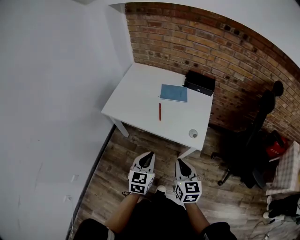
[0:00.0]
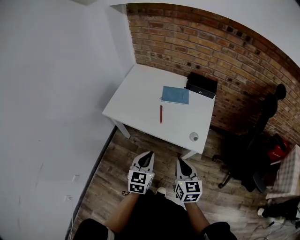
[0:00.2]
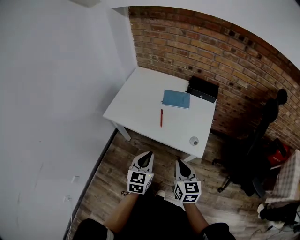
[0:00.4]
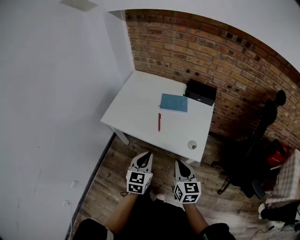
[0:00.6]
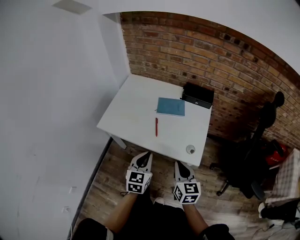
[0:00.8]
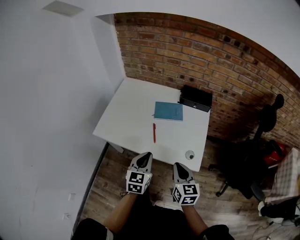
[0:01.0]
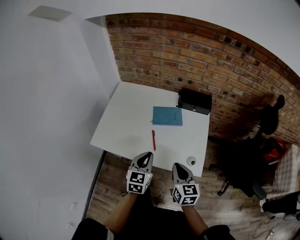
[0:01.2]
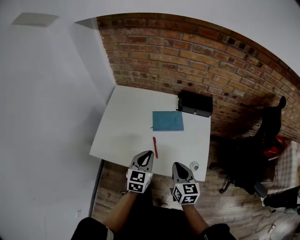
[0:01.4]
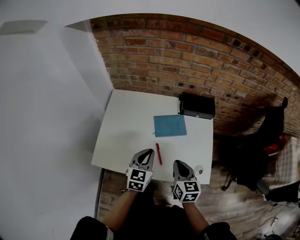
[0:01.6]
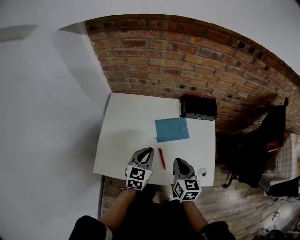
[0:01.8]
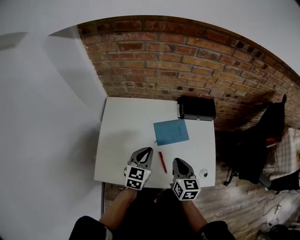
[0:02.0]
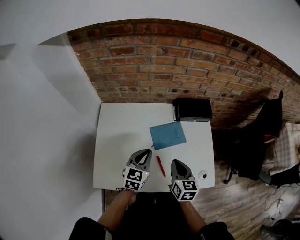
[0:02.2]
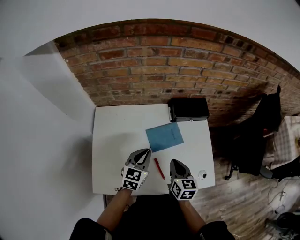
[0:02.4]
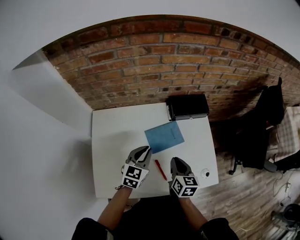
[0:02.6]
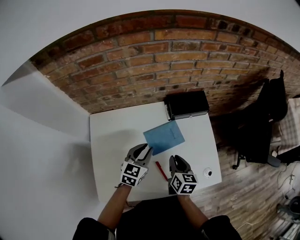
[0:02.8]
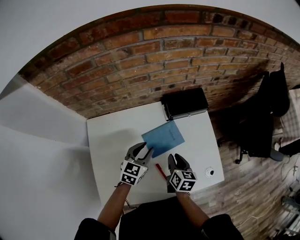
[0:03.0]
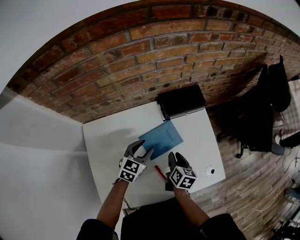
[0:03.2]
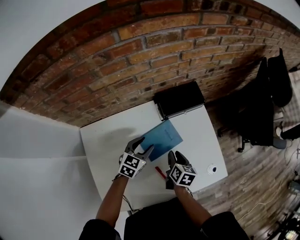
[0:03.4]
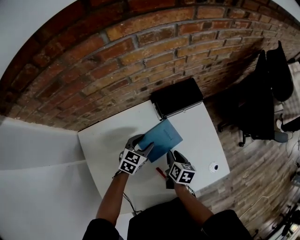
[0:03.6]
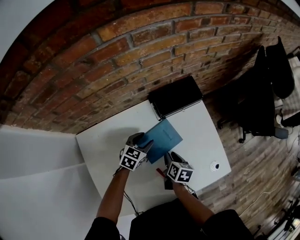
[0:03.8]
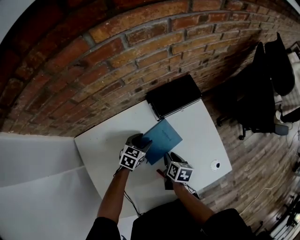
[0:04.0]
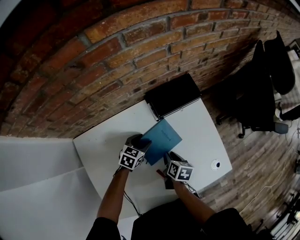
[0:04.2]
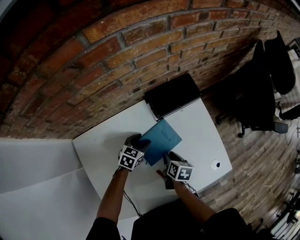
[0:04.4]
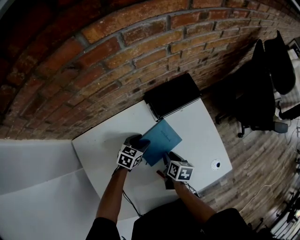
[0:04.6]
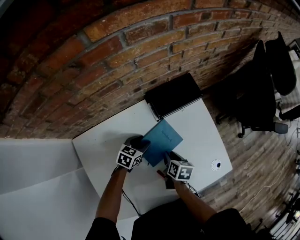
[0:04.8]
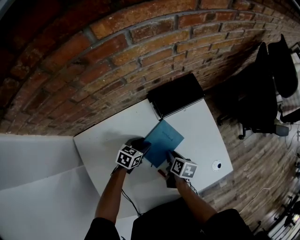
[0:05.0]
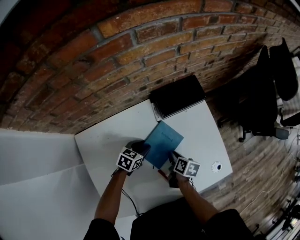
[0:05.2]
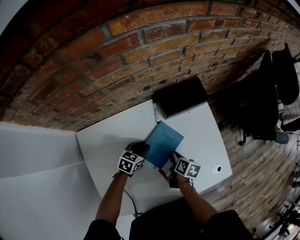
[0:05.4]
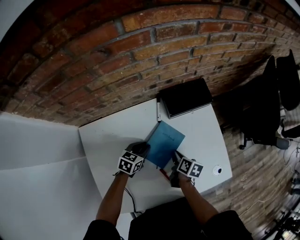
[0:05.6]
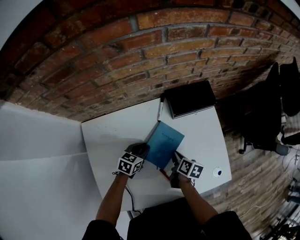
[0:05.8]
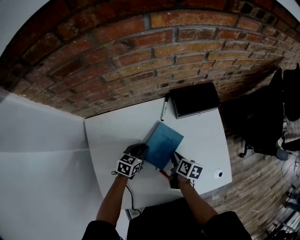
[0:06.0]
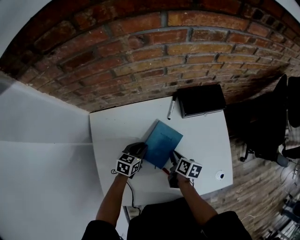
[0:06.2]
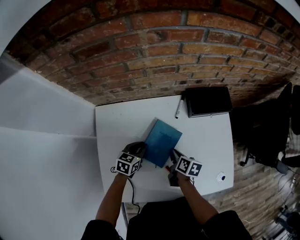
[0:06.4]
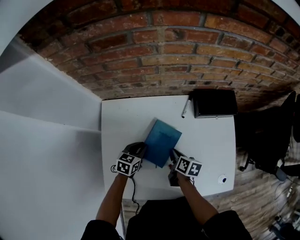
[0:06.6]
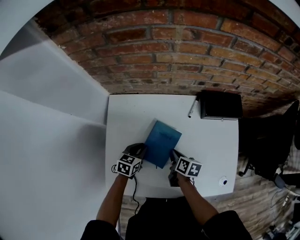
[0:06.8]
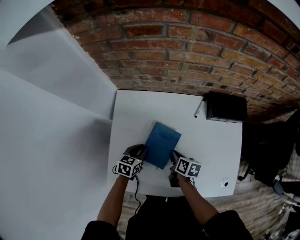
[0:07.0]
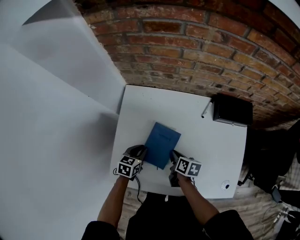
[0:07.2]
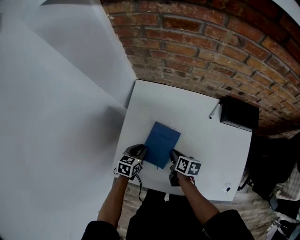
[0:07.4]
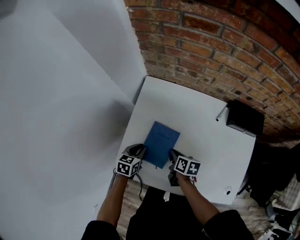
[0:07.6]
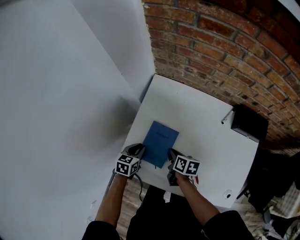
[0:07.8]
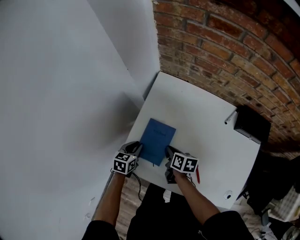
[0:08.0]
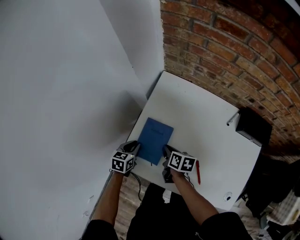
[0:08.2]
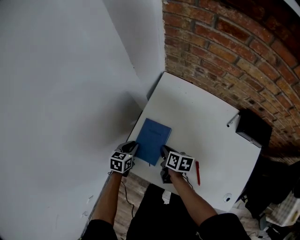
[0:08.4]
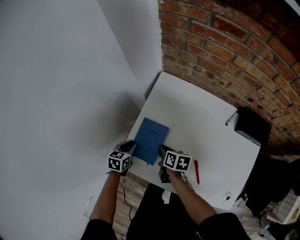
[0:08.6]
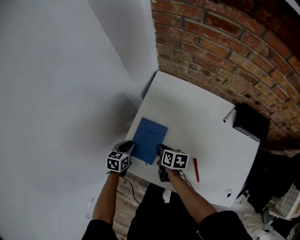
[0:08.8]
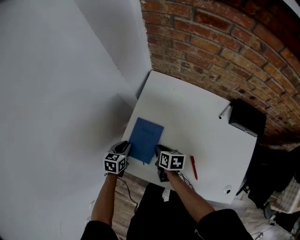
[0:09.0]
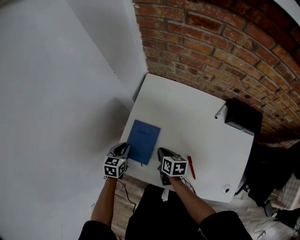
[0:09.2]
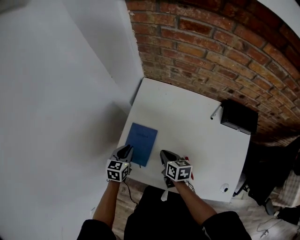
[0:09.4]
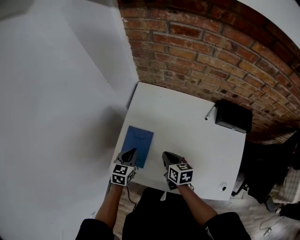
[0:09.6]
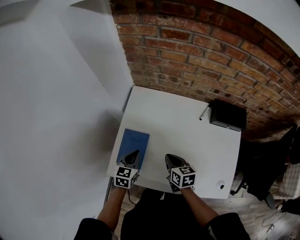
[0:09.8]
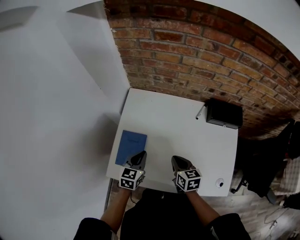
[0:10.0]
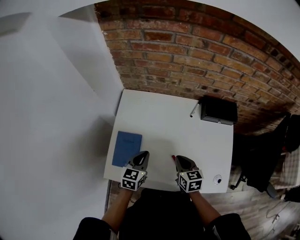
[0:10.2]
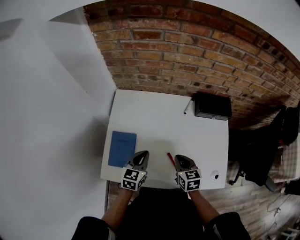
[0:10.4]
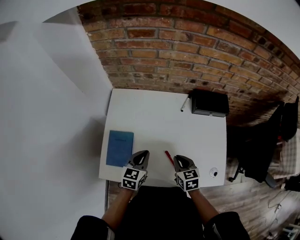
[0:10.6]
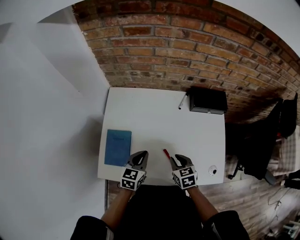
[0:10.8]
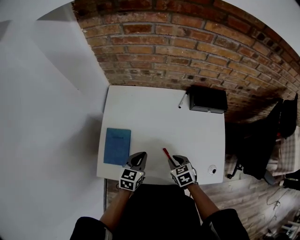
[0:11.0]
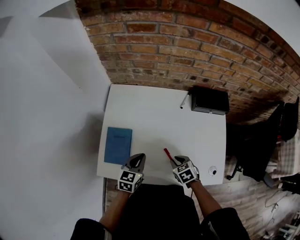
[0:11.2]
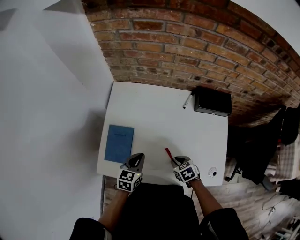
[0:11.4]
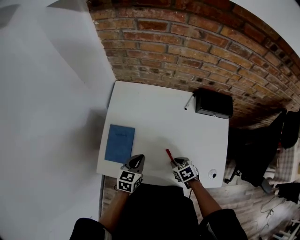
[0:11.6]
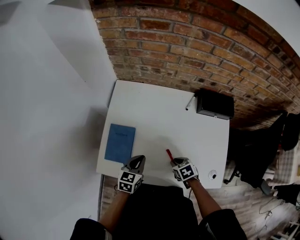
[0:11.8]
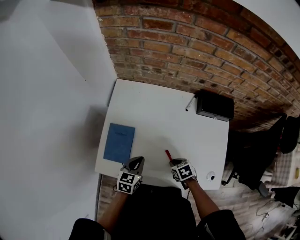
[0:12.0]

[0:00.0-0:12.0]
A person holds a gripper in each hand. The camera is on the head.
0:00.0 to 0:01.6: The grippers both shift forward by approximately 30 cm.
0:01.6 to 0:03.0: The left gripper shifts about 20 cm forward, turns by some 30 degrees, and opens up. The right gripper shifts approximately 20 cm forward and downward, and turns by roughly 30 degrees.
0:03.0 to 0:04.4: The left gripper heads downward and forward, covering about 20 cm, rotates about 20 degrees, and opens its fingers, while the right gripper heads downward, covering about 10 cm, and changes its angle by some 20 degrees.
0:04.4 to 0:06.0: The left gripper is displaced backward and to the left by some 10 cm, and closes its fingers.
0:06.0 to 0:07.6: The right gripper ends up approximately 20 cm from where it was, and changes its angle by some 40 degrees. Meanwhile the left gripper shifts by about 25 cm, and changes its angle by roughly 40 degrees.
0:07.6 to 0:09.0: Both grippers move to the left, about 10 cm.
0:09.0 to 0:10.4: The right gripper moves about 25 cm, and rotates approximately 30 degrees. The left gripper changes place by about 25 cm, and rotates about 30 degrees.
0:10.4 to 0:12.0: The right gripper shifts roughly 15 cm downward, and changes its angle by approximately 40 degrees. Meanwhile the left gripper shifts roughly 5 cm downward.

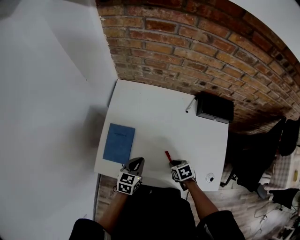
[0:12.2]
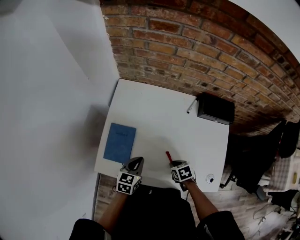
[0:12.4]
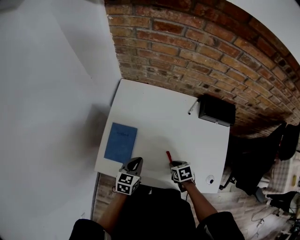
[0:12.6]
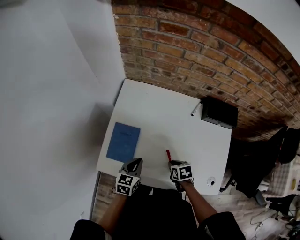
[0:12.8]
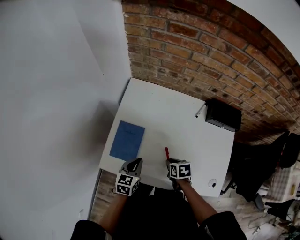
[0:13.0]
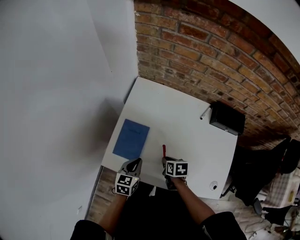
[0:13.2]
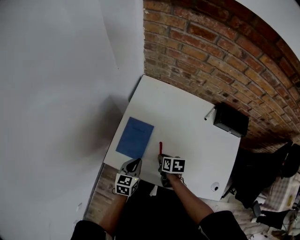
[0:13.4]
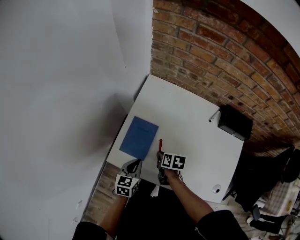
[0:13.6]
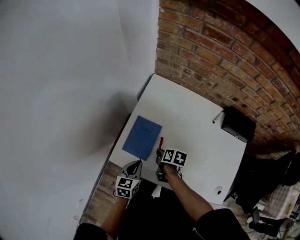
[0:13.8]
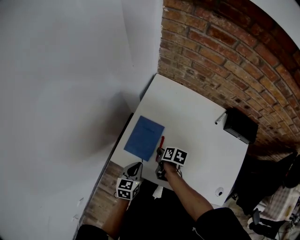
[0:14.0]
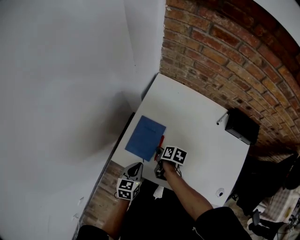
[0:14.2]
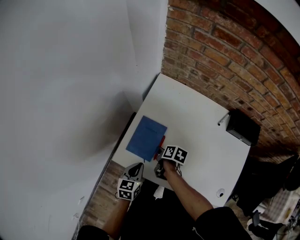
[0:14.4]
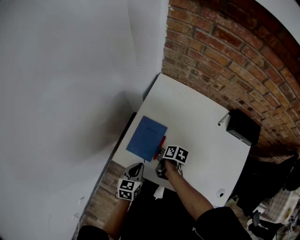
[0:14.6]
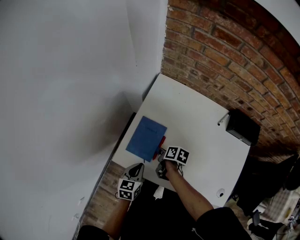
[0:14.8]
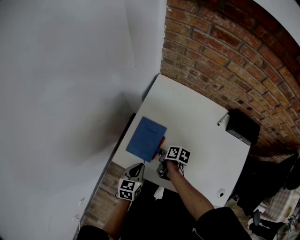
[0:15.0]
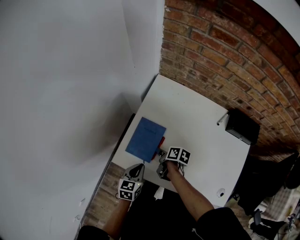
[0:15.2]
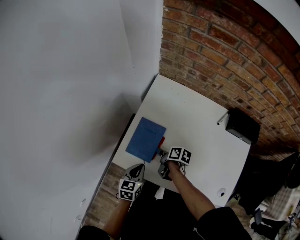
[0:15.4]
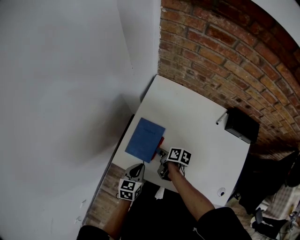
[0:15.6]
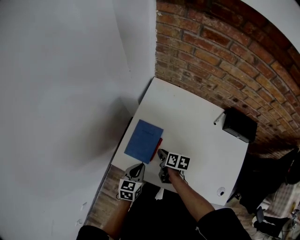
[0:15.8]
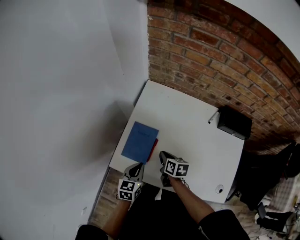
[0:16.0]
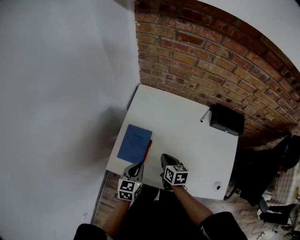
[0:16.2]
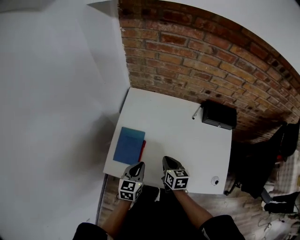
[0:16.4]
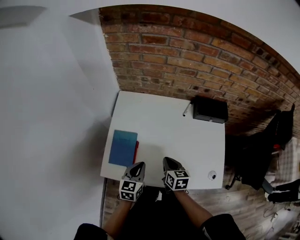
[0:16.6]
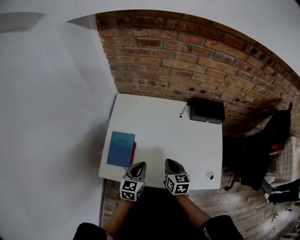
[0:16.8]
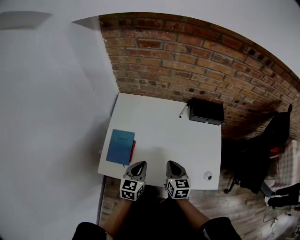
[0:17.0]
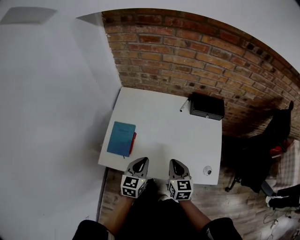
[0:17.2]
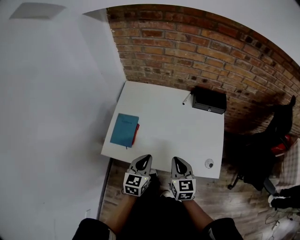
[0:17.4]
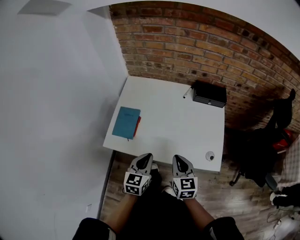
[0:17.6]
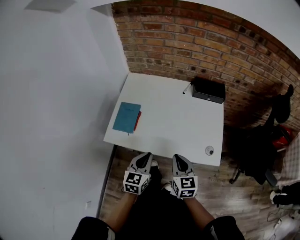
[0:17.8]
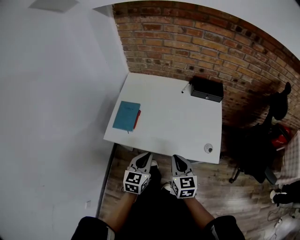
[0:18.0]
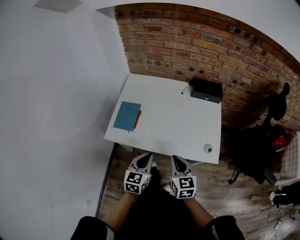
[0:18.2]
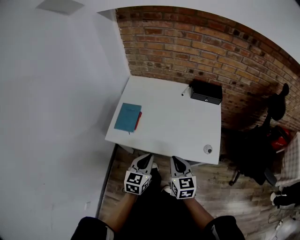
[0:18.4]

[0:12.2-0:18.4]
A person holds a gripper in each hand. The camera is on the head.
0:12.2 to 0:13.8: The right gripper heads to the left and forward, covering about 20 cm, and turns by approximately 30 degrees, while the left gripper goes some 10 cm to the left.
0:13.8 to 0:15.4: The grippers stay close to where they were, moving slightly.
0:15.4 to 0:16.8: The left gripper shifts by about 15 cm, and rotates some 20 degrees; the right gripper moves roughly 25 cm, and rotates approximately 50 degrees.
0:16.8 to 0:18.4: The left gripper moves backward, about 20 cm; the right gripper is displaced backward and upward by some 25 cm.

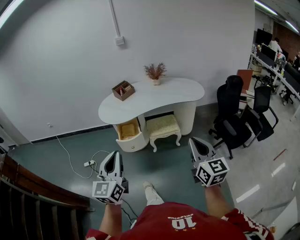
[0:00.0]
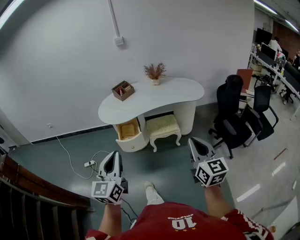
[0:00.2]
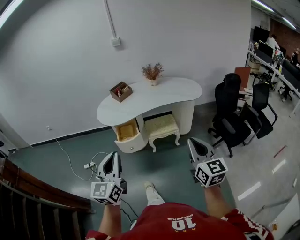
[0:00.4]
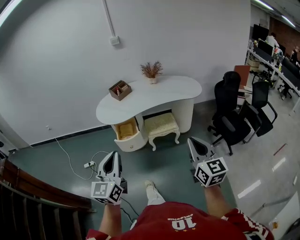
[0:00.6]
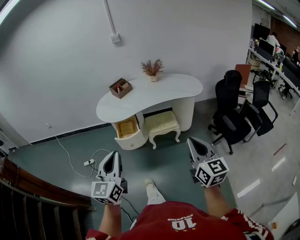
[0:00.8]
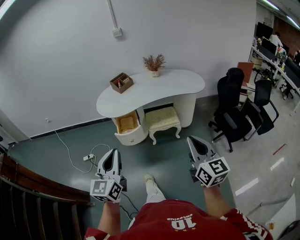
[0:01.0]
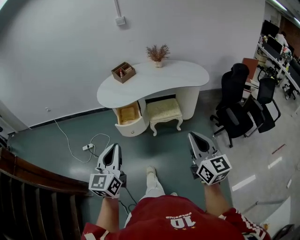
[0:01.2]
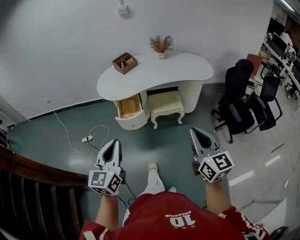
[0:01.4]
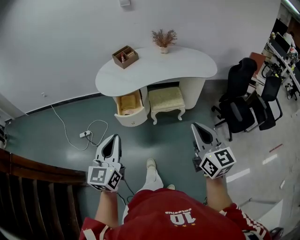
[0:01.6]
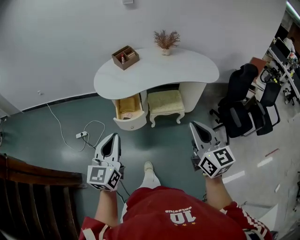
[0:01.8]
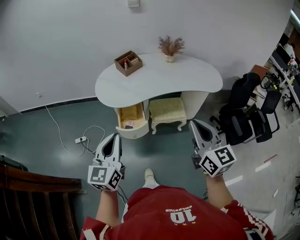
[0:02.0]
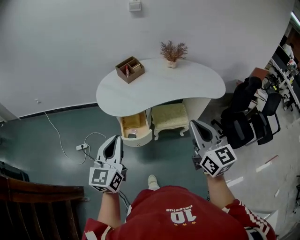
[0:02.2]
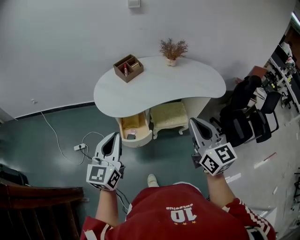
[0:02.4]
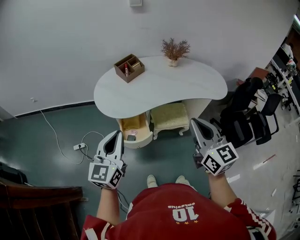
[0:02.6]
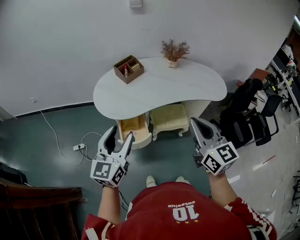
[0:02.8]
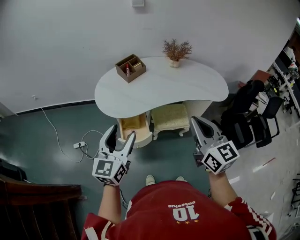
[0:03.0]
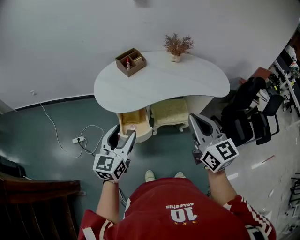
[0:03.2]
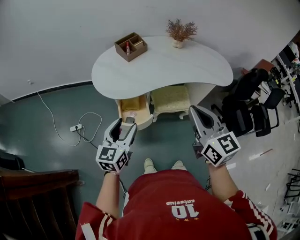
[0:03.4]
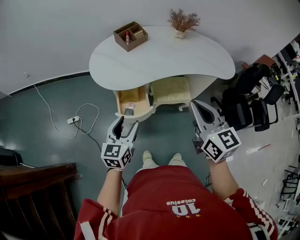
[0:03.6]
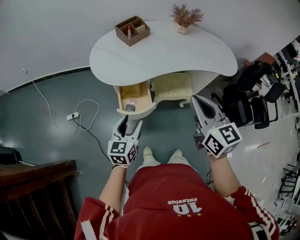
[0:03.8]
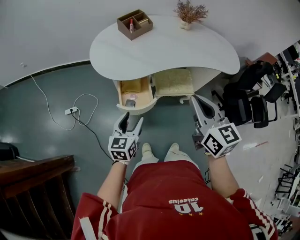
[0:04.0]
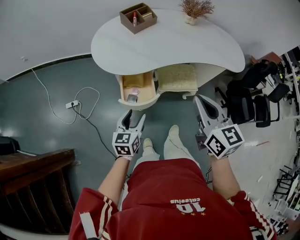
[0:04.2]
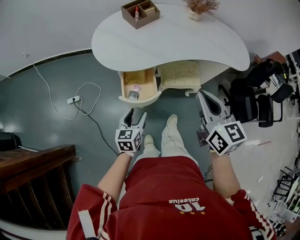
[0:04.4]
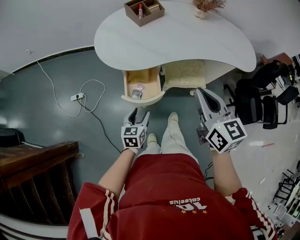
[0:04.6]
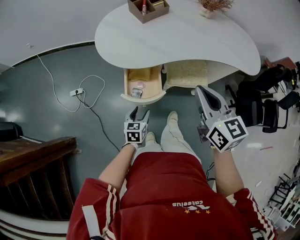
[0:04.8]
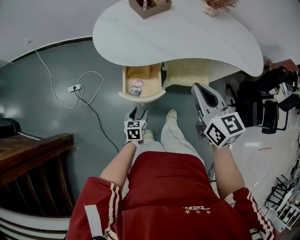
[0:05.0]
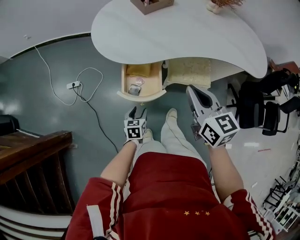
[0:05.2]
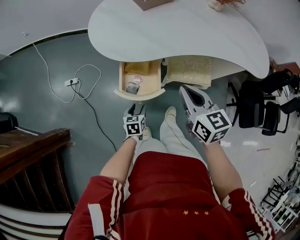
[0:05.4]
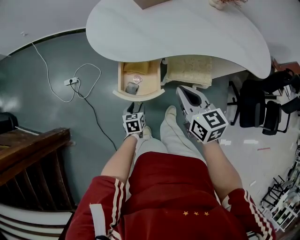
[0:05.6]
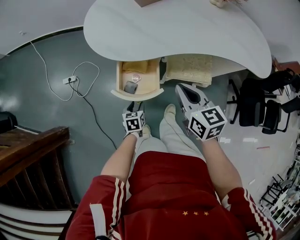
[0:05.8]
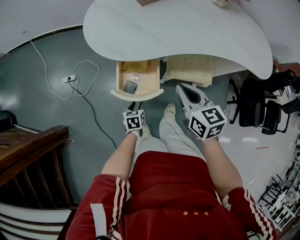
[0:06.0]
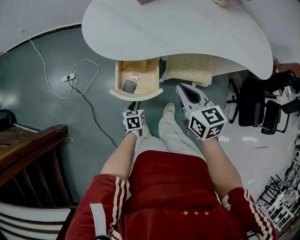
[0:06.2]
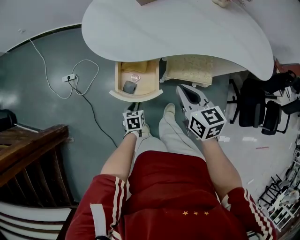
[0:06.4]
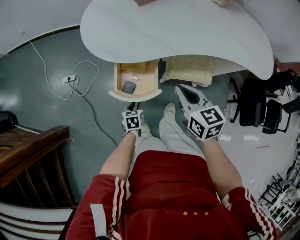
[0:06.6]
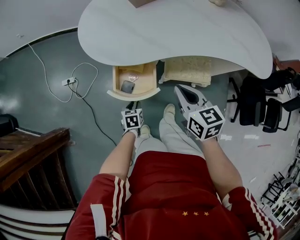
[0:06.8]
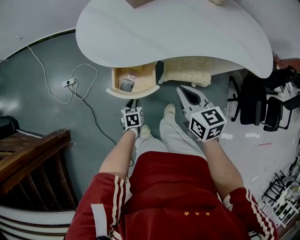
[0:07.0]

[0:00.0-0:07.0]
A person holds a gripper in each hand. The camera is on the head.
0:00.0 to 0:01.4: The right gripper shifts by about 5 cm, while the left gripper changes place by about 5 cm.
0:01.4 to 0:02.8: The two grippers go roughly 30 cm forward. The left gripper opens its fingers.
0:02.8 to 0:04.2: The left gripper shifts about 30 cm downward, and changes its angle by some 30 degrees. The right gripper heads downward and to the left, covering some 15 cm.
0:04.2 to 0:05.6: The left gripper shifts approximately 25 cm downward, and turns by about 30 degrees, while the right gripper is displaced downward and forward by roughly 25 cm.
0:05.6 to 0:07.0: The right gripper changes place by approximately 5 cm.
